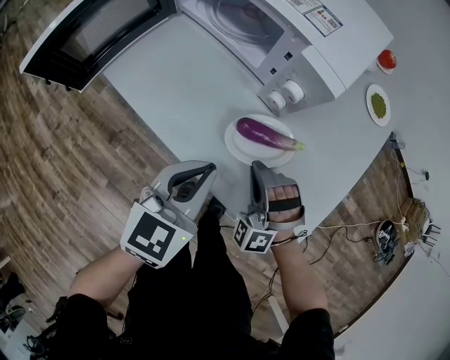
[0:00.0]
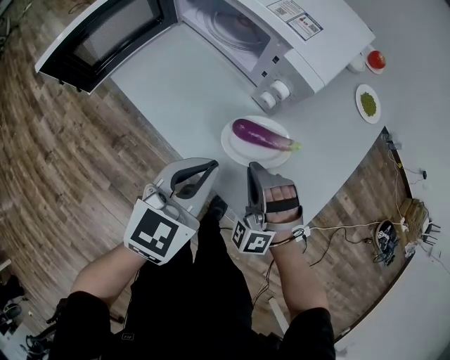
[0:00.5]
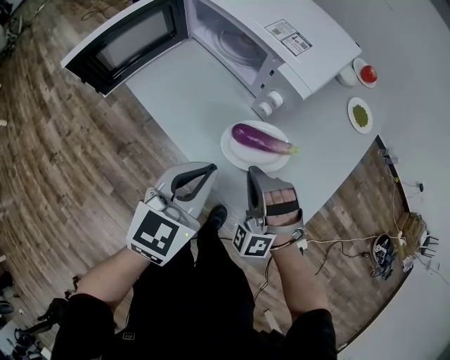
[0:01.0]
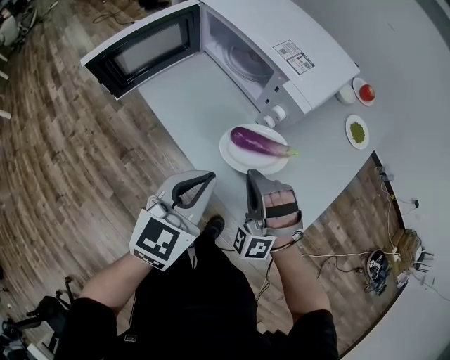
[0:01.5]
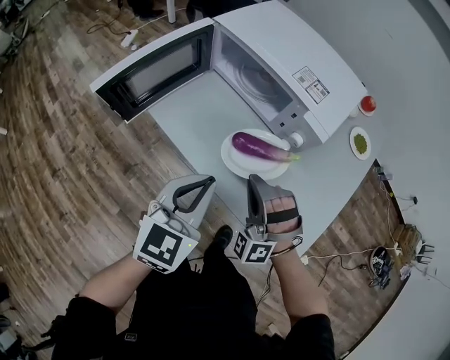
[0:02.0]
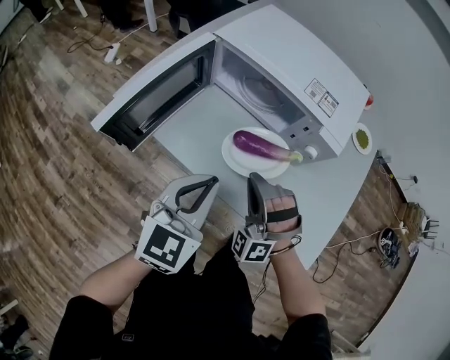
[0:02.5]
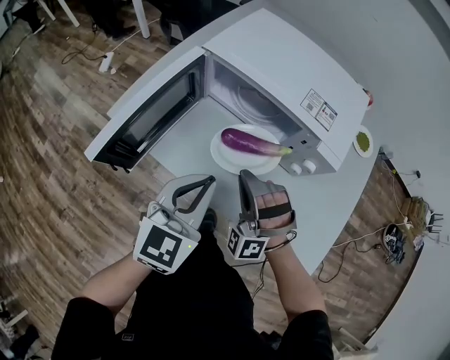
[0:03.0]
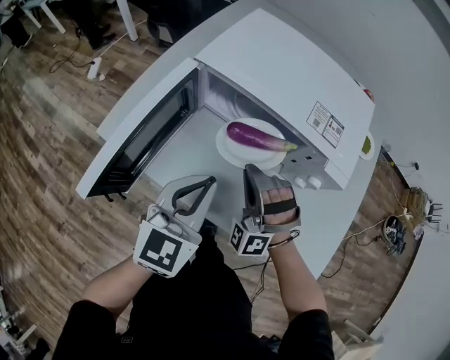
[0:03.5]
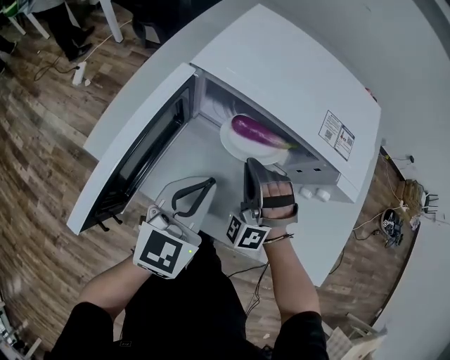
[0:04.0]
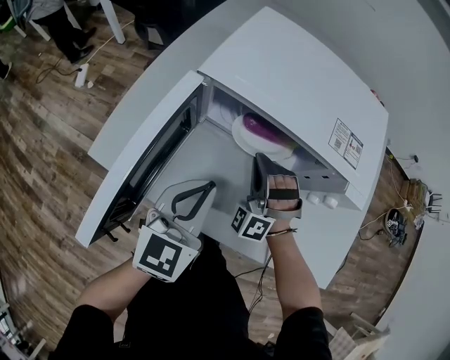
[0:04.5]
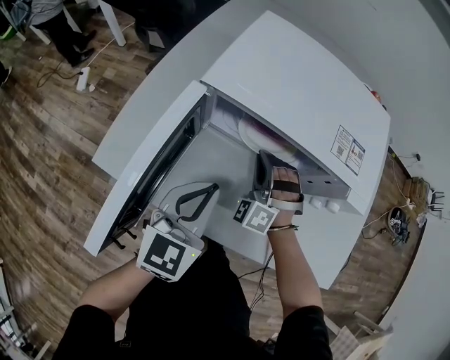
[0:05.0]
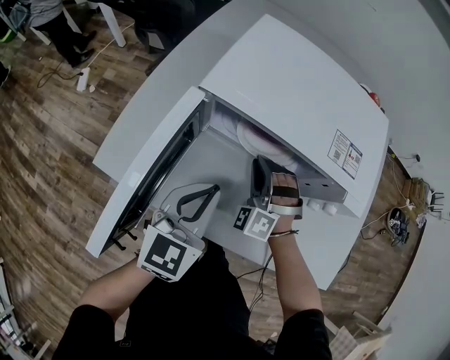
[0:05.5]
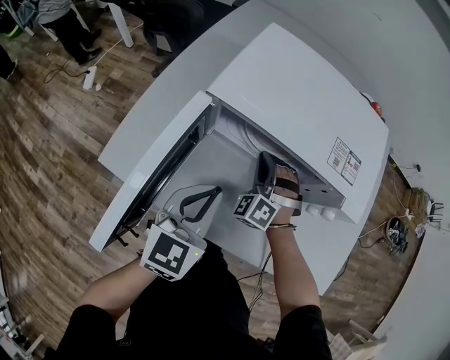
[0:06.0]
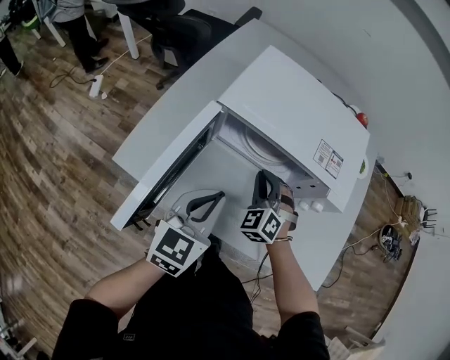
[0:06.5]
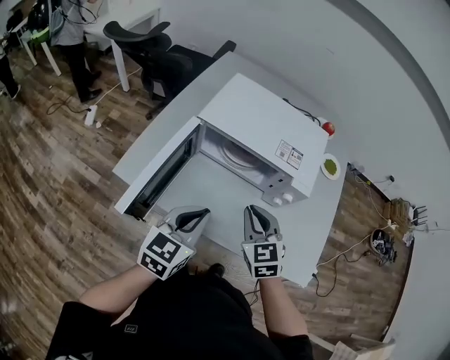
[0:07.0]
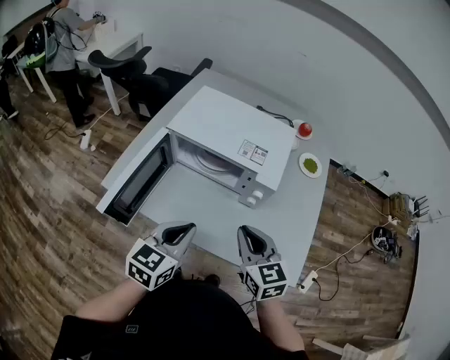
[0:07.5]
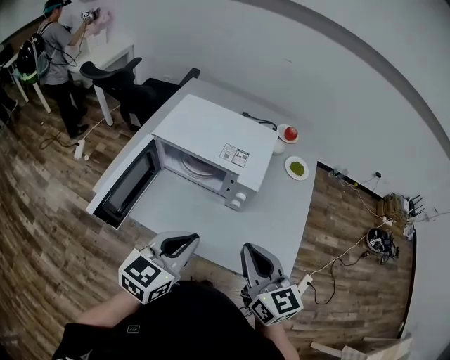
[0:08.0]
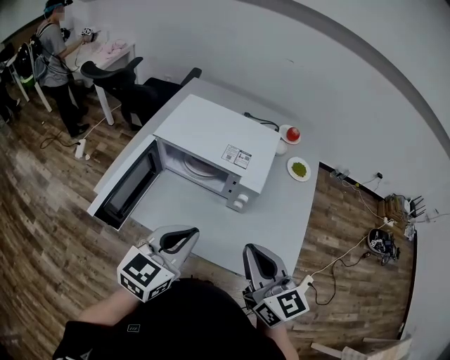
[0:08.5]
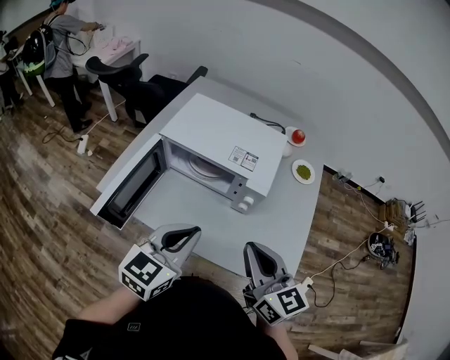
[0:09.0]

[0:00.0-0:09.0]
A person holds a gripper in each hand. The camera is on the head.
0:00.0 to 0:02.0: The grippers both shift upward and to the left by approximately 15 cm.
0:02.0 to 0:04.5: The grippers both shift forward and to the left by some 25 cm. The right gripper swivels approximately 30 degrees.
0:04.5 to 0:07.0: The left gripper shifts roughly 10 cm upward and backward. The right gripper heads upward, backward and to the right, covering some 20 cm, and rolls clockwise, seen from behind, by roughly 60 degrees.
0:07.0 to 0:09.0: The right gripper shifts roughly 20 cm upward, to the right and backward, and turns by some 30 degrees, while the left gripper moves to the right and upward, about 15 cm.

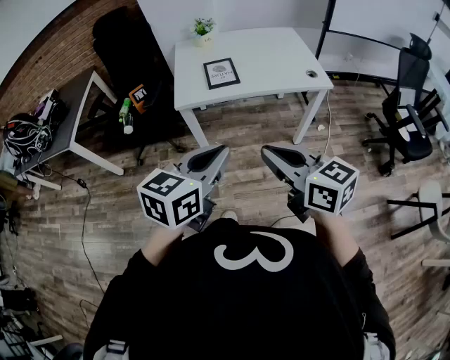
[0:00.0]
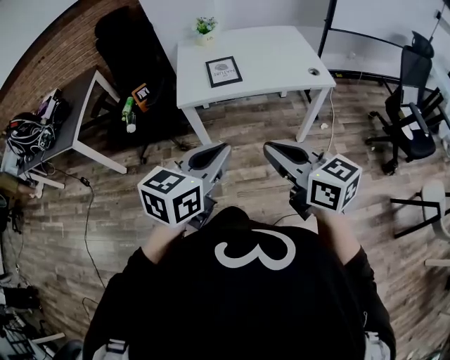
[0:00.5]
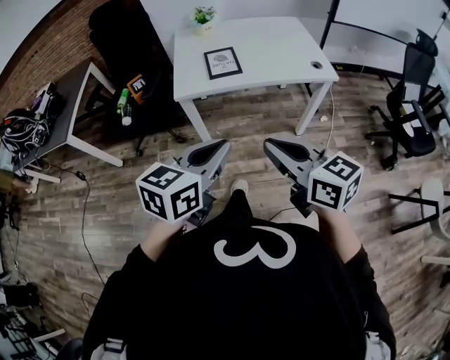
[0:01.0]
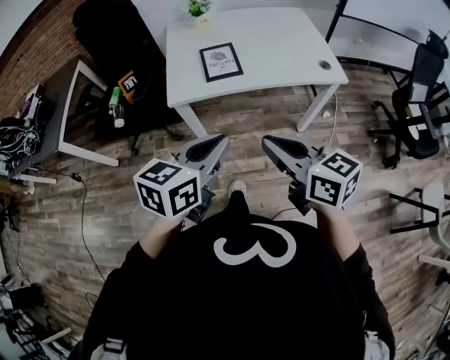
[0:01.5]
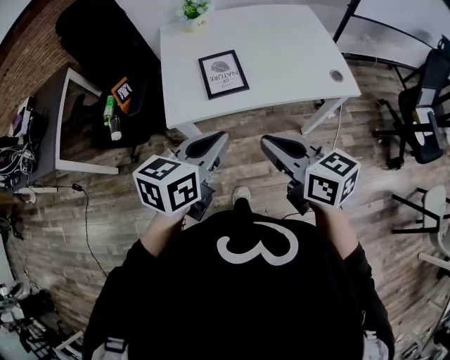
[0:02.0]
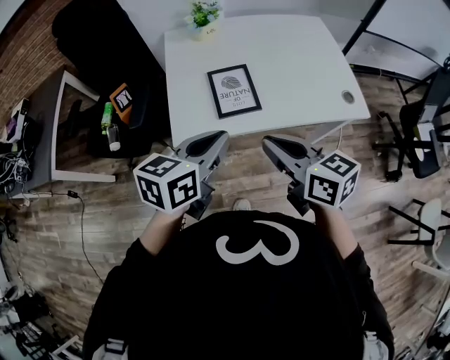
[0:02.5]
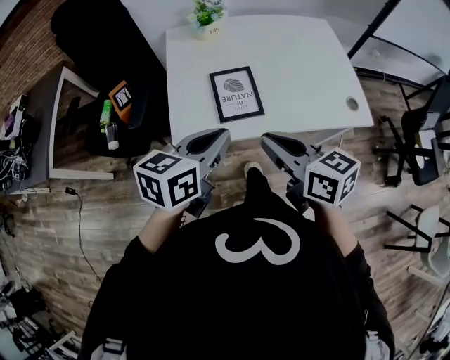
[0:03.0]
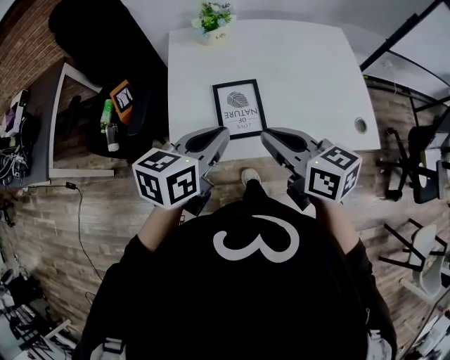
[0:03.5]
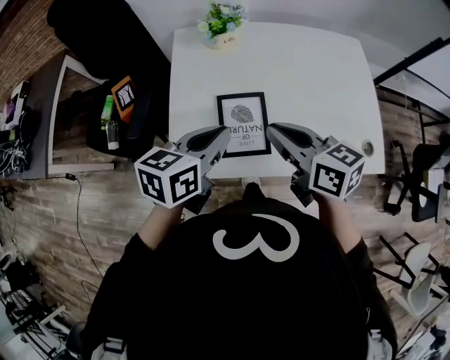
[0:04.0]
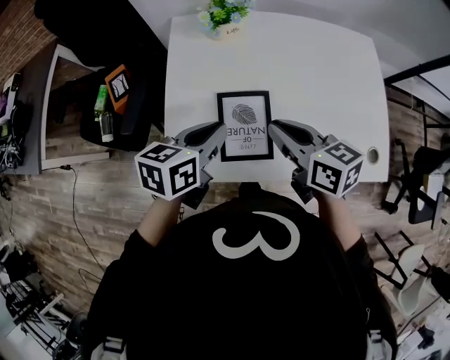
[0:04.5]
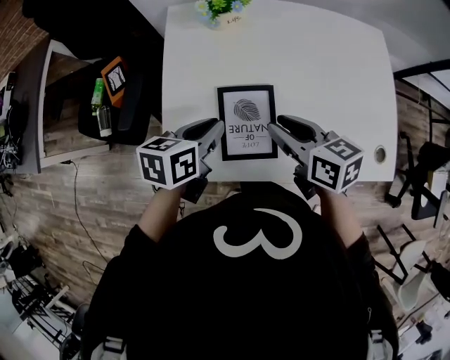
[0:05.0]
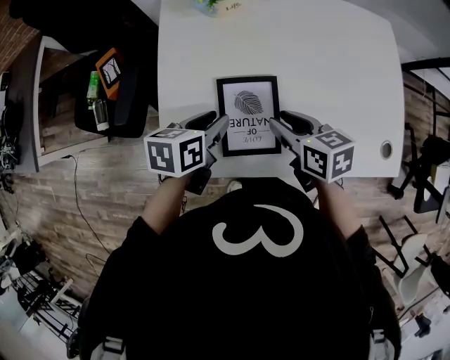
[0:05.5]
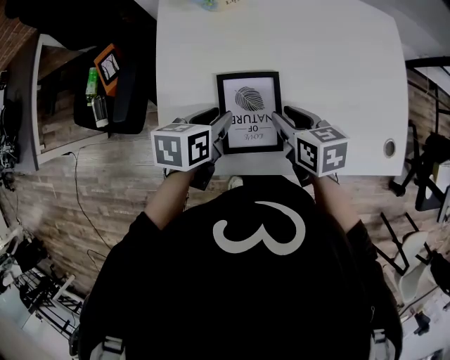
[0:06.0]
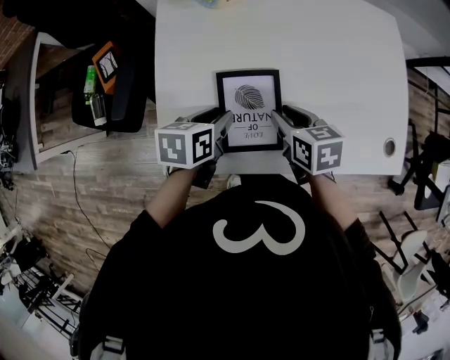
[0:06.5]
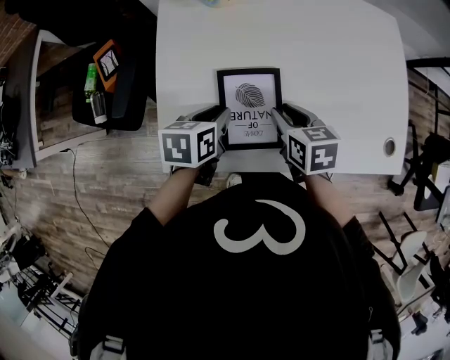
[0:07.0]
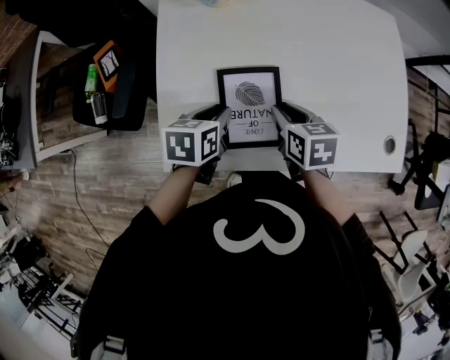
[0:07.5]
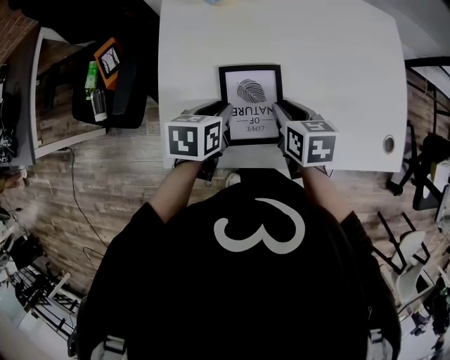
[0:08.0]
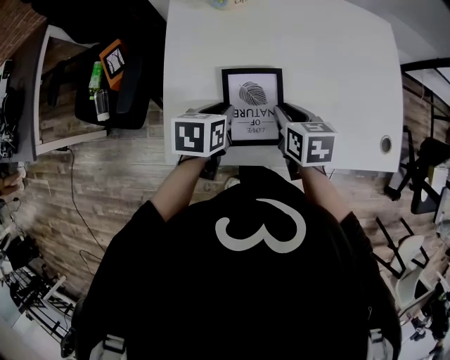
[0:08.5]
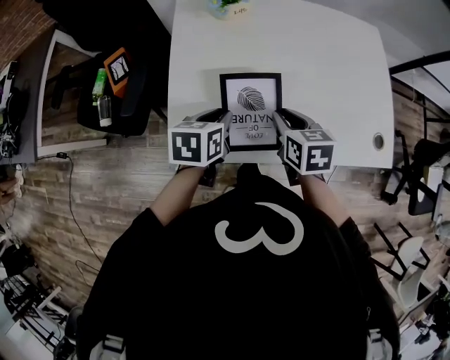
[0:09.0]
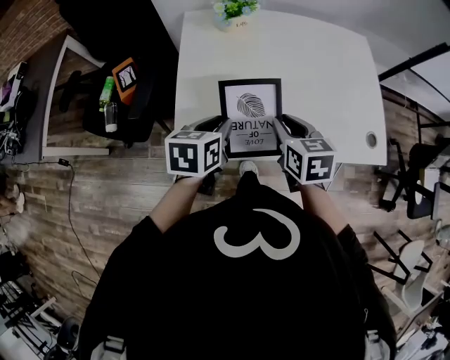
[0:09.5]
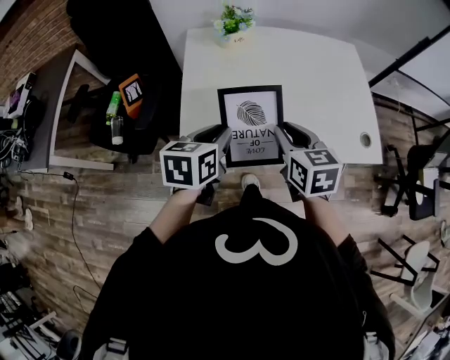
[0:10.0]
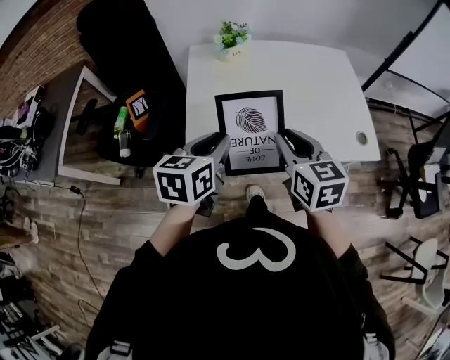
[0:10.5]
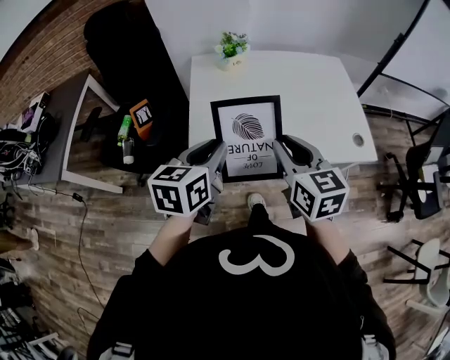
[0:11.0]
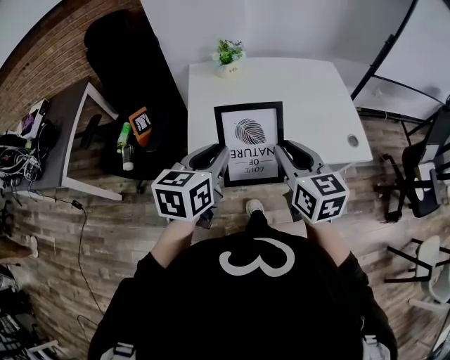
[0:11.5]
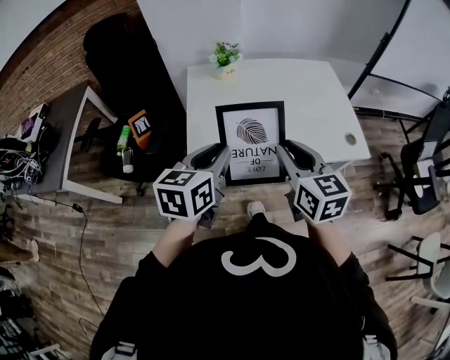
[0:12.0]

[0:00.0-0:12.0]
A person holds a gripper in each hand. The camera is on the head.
0:00.0 to 0:02.0: Both grippers move forward, approximately 25 cm.
0:02.0 to 0:04.0: Both grippers travel together forward, roughly 30 cm.
0:04.0 to 0:06.0: Both grippers move downward, roughly 20 cm. The left gripper swivels roughly 20 degrees, and opens its fingers. Meanwhile the right gripper turns by roughly 30 degrees, and opens its fingers.
0:06.0 to 0:08.0: The grippers stay close to where they were, moving slightly.
0:08.0 to 0:10.0: Both grippers move upward and backward, approximately 20 cm. The right gripper turns by roughly 20 degrees.
0:10.0 to 0:12.0: Both grippers move upward and backward, about 15 cm.
